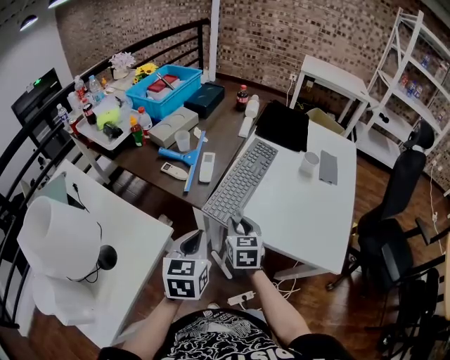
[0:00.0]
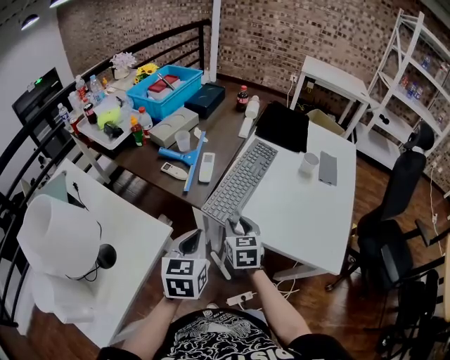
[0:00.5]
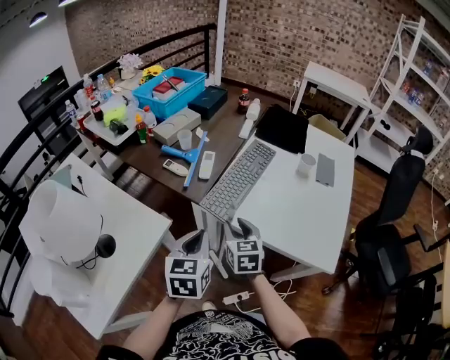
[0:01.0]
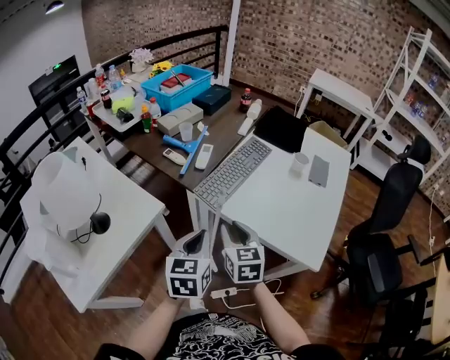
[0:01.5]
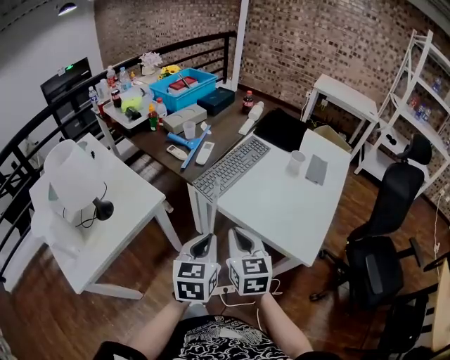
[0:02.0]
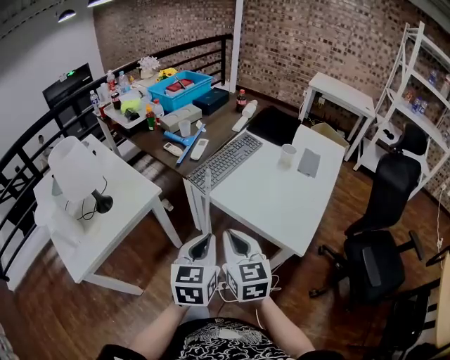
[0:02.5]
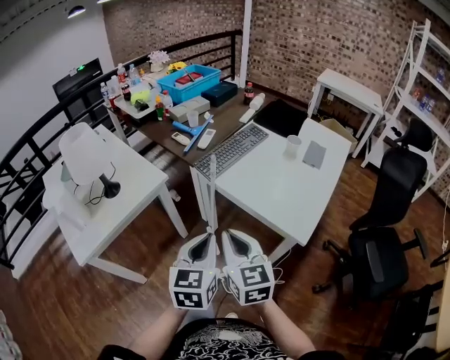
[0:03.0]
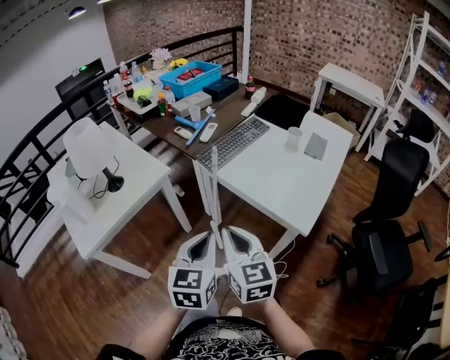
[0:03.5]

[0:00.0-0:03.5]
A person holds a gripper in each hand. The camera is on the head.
0:00.0 to 0:02.0: The right gripper moves backward and upward, about 20 cm, and closes, while the left gripper heads backward and to the right, covering some 20 cm.
0:02.0 to 0:03.5: Both grippers travel together backward, approximately 15 cm.

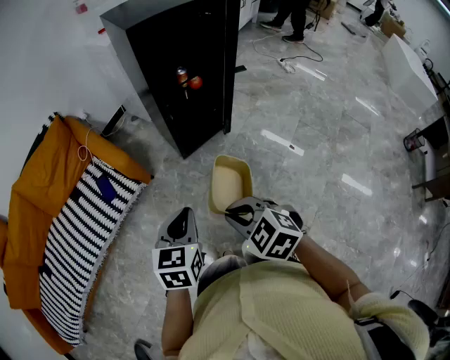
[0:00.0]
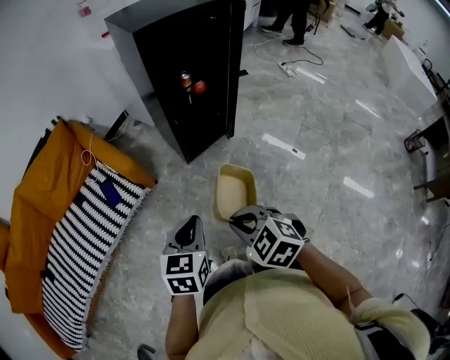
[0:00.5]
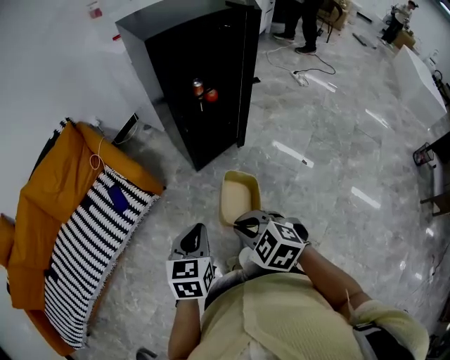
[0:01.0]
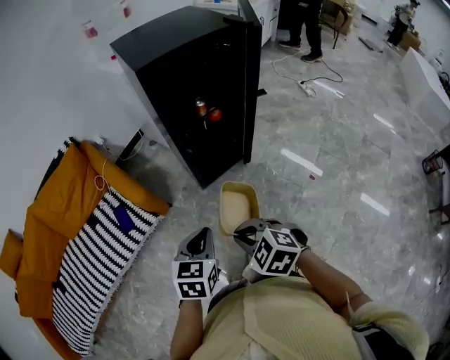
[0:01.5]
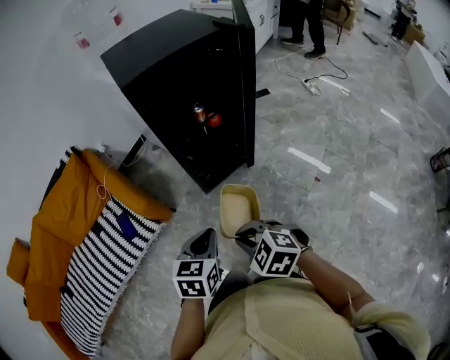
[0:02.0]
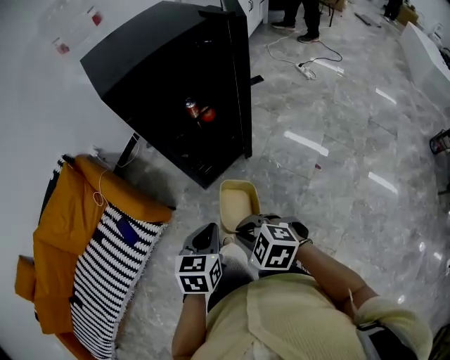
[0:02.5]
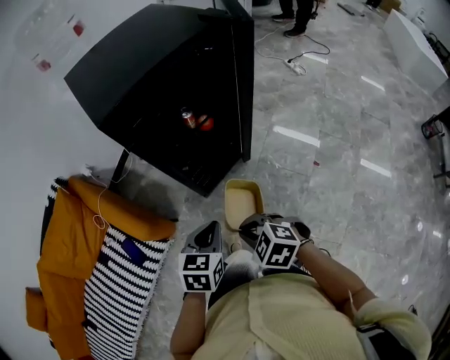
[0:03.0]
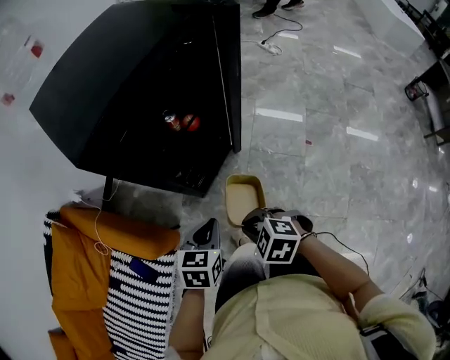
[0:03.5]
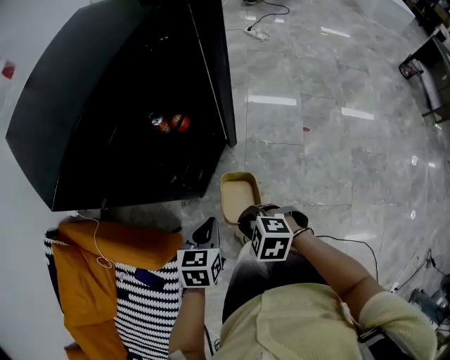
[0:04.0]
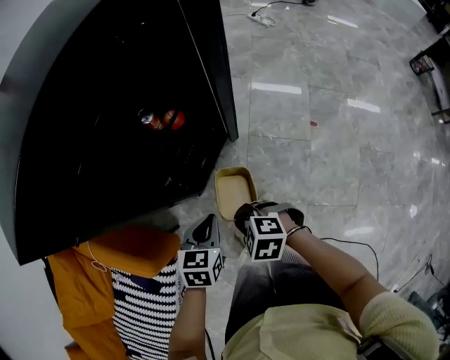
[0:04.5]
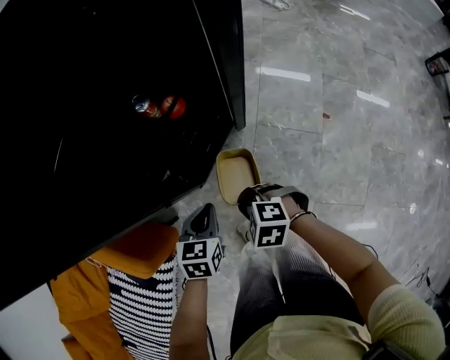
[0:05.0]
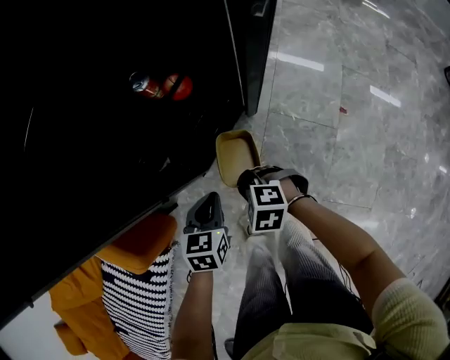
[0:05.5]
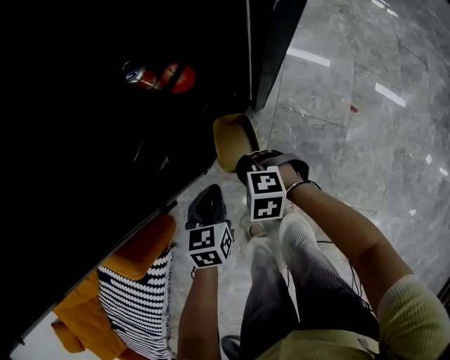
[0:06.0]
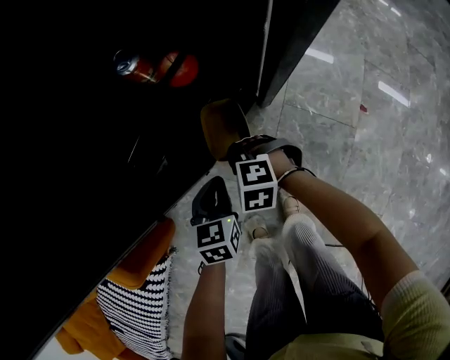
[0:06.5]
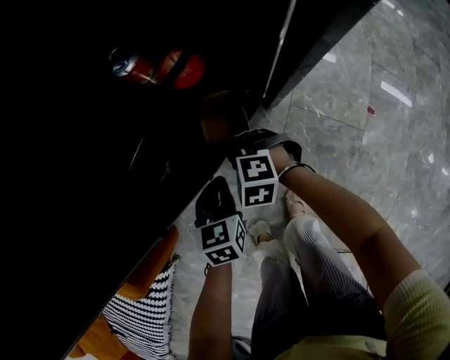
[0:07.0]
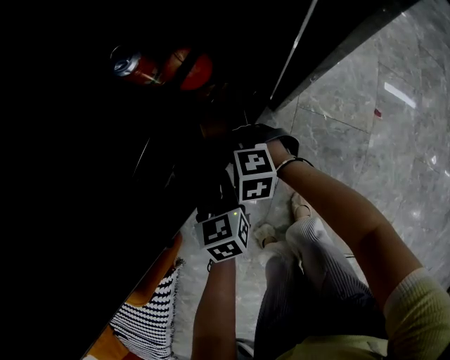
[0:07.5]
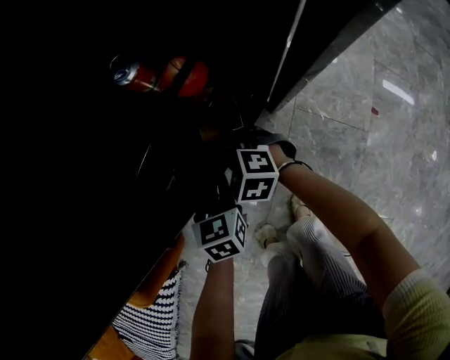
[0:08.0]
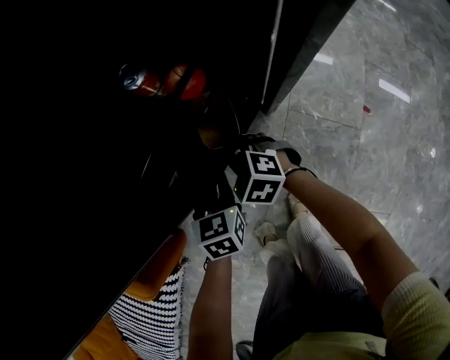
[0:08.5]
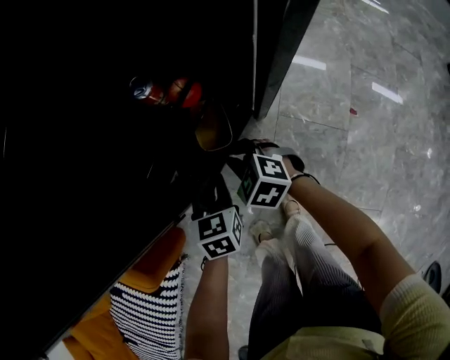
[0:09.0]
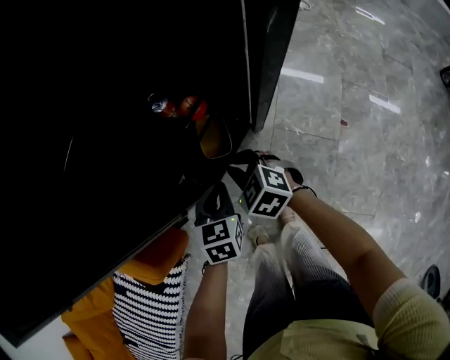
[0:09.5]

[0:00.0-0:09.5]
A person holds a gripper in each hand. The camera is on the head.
0:00.0 to 0:02.0: The grippers both shift forward and to the right by some 15 cm.
0:02.0 to 0:04.0: Both grippers move forward and downward, approximately 20 cm. The right gripper swivels about 20 degrees. Meanwhile the left gripper turns by roughly 30 degrees.
0:04.0 to 0:05.5: The grippers both shift downward and forward by some 20 cm.
0:05.5 to 0:07.5: The right gripper shifts roughly 20 cm forward and downward. The left gripper heads downward and forward, covering roughly 15 cm.
0:07.5 to 0:09.5: Both grippers move upward, some 20 cm. The right gripper turns by roughly 30 degrees.

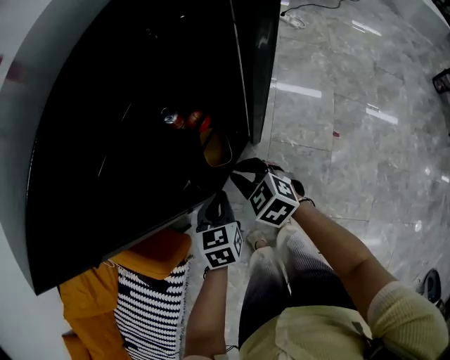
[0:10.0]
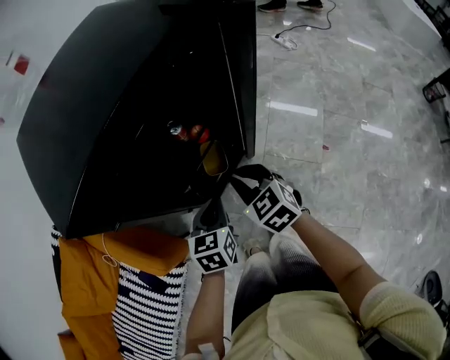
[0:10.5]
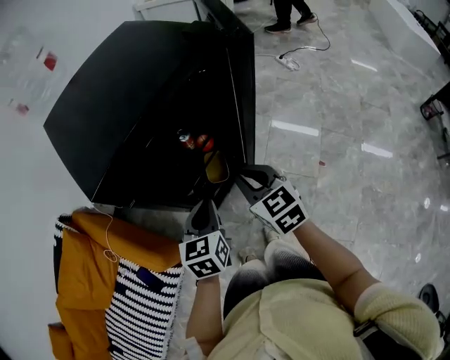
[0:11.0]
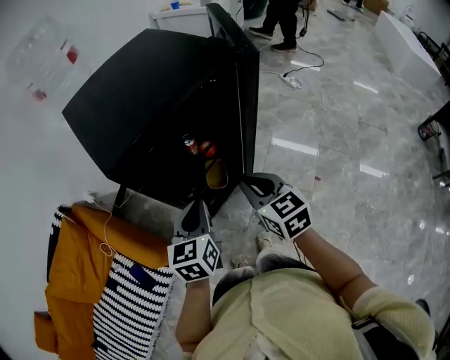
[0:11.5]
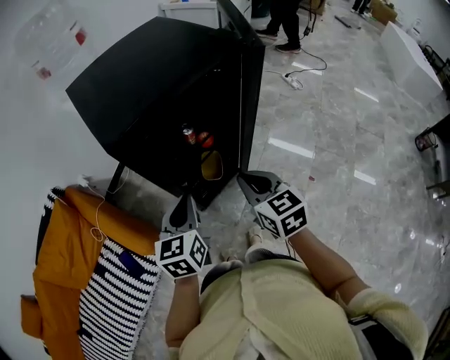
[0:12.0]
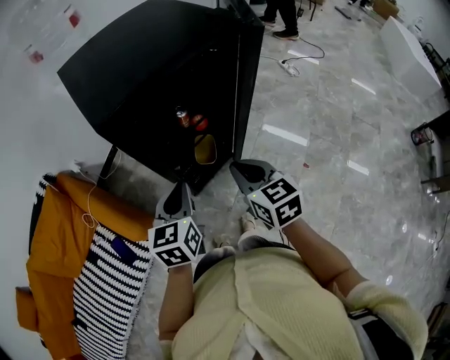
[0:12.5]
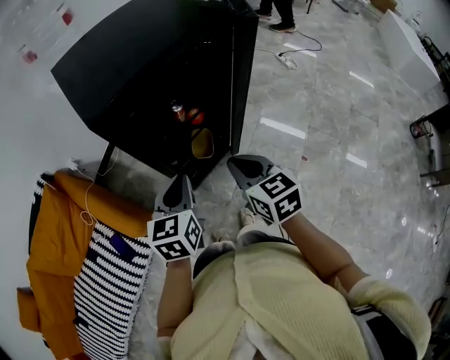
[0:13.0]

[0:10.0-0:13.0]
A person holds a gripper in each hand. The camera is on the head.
0:10.0 to 0:11.5: The two grippers go roughly 20 cm upward. The right gripper rotates approximately 30 degrees. The left gripper rotates some 20 degrees.
0:11.5 to 0:13.0: The grippers stay close to where they were, moving slightly.

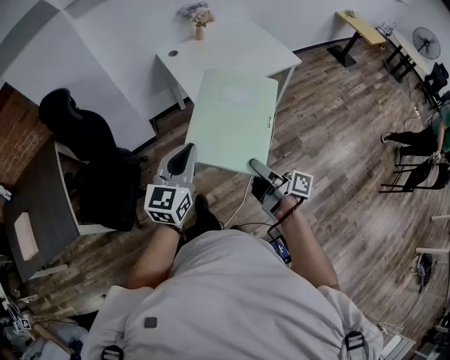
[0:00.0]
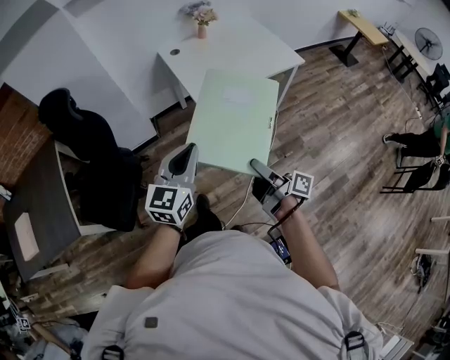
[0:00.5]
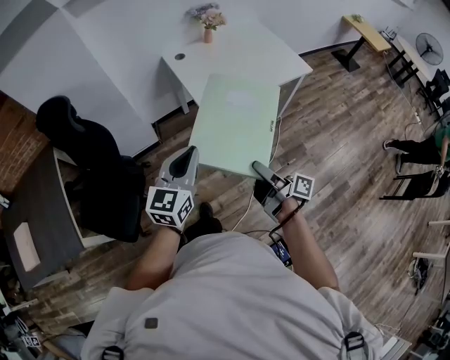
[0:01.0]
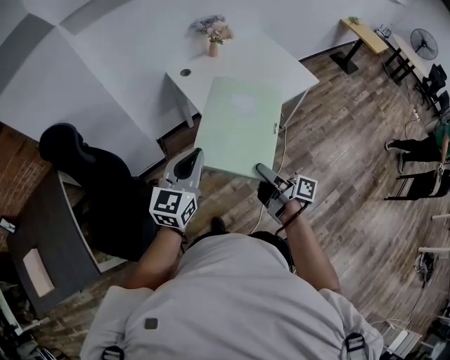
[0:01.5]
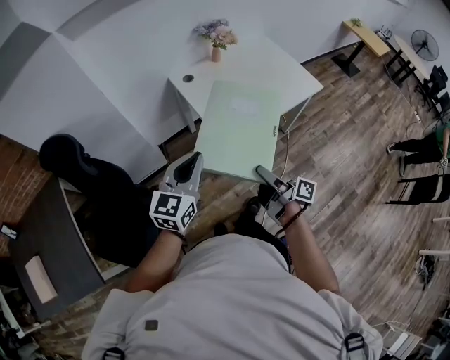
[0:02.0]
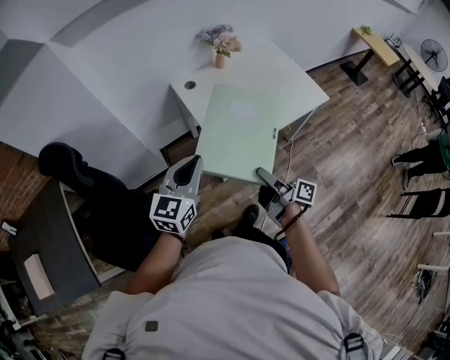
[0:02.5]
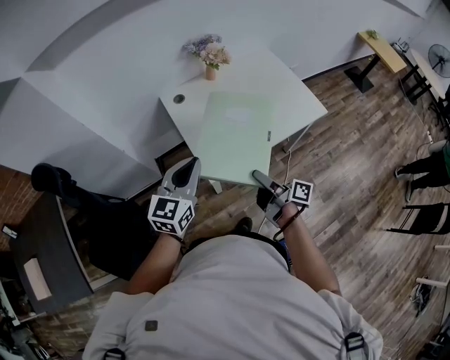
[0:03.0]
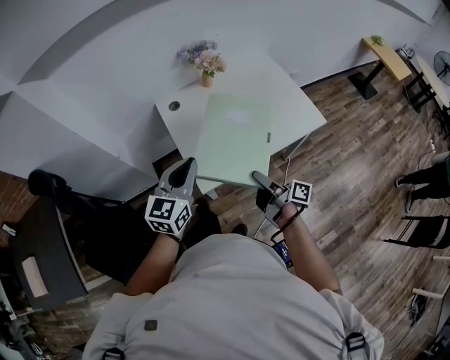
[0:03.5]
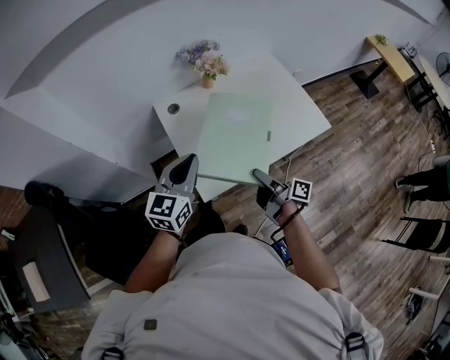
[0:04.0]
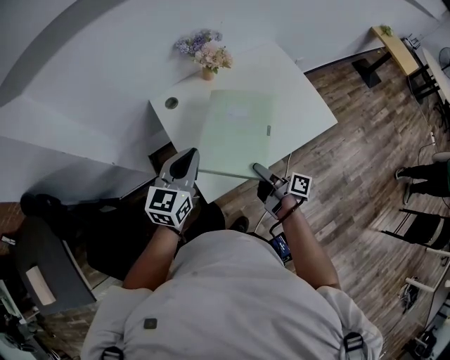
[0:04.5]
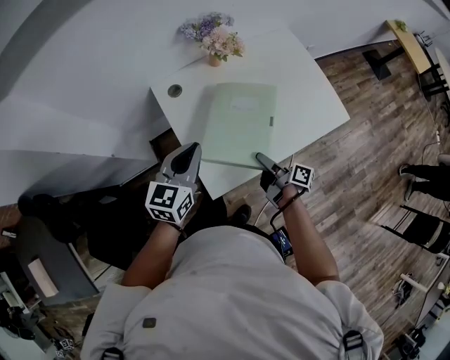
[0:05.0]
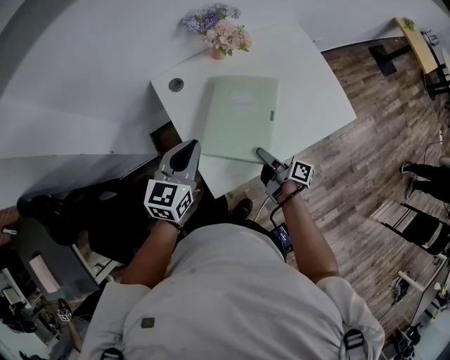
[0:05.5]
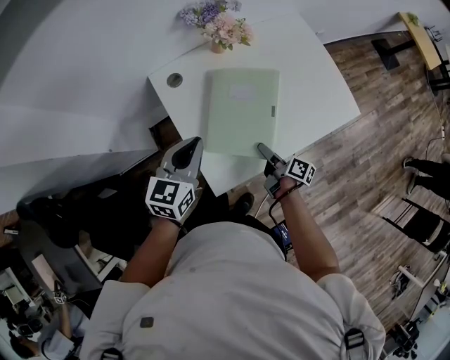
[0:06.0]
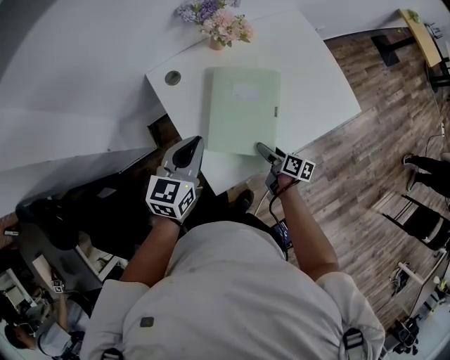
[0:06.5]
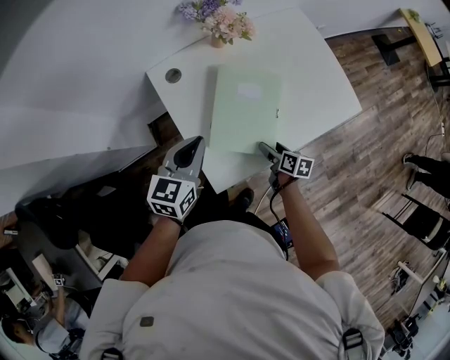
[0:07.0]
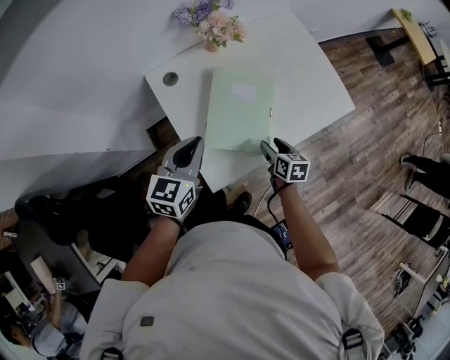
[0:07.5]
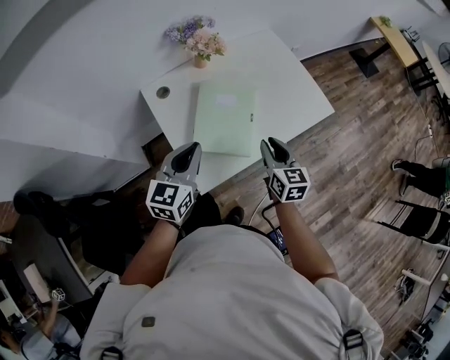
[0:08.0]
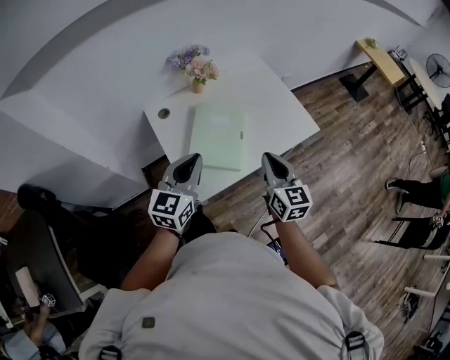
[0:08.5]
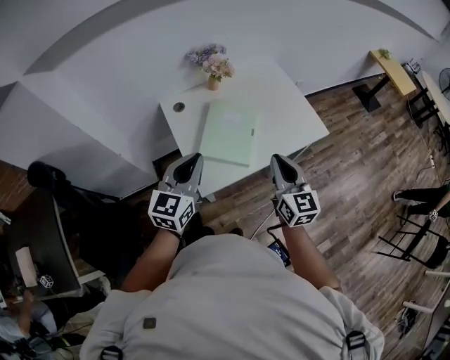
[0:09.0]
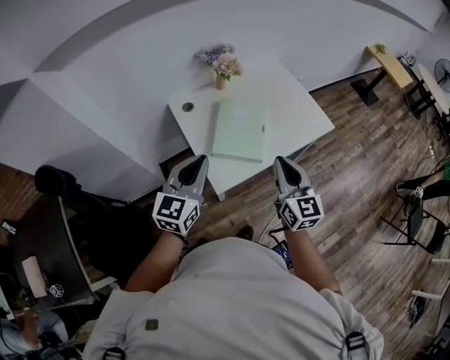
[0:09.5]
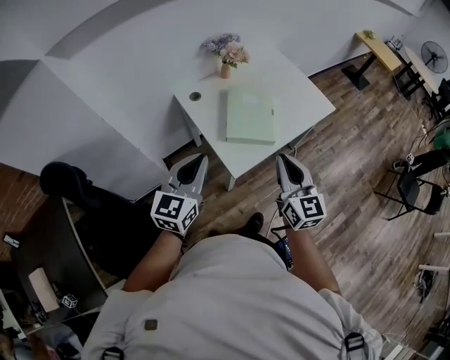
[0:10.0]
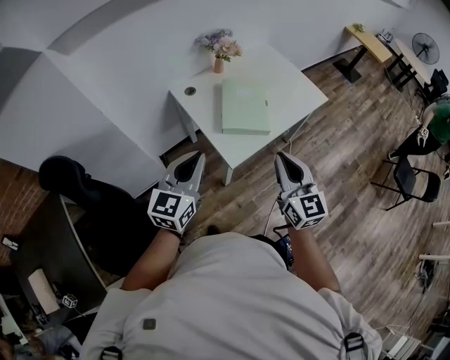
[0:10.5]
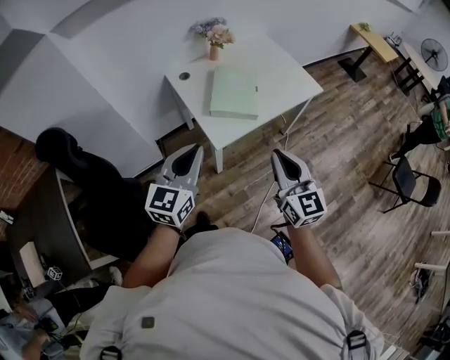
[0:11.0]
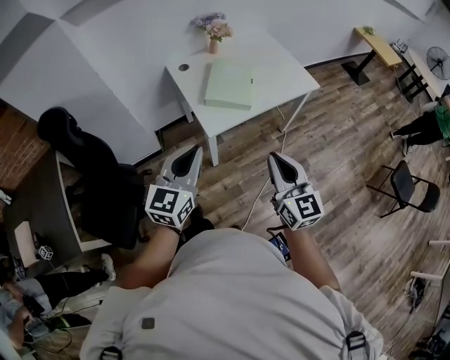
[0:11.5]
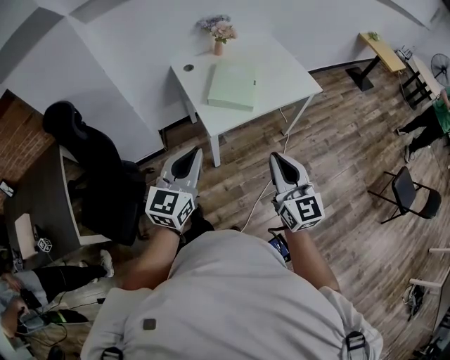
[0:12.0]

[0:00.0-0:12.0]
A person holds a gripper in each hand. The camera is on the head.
0:00.0 to 0:02.0: The right gripper goes about 25 cm forward. Meanwhile the left gripper travels forward and to the left by approximately 25 cm.
0:02.0 to 0:04.0: The grippers both shift forward and to the right by approximately 30 cm.
0:04.0 to 0:06.0: The left gripper travels forward and downward by roughly 15 cm. The right gripper moves downward and forward, roughly 20 cm, and turns by approximately 20 degrees.
0:06.0 to 0:08.0: The left gripper goes roughly 10 cm backward, to the right and upward. The right gripper goes roughly 15 cm upward, twists roughly 60 degrees counterclockwise, seen from behind, and closes its fingers.
0:08.0 to 0:10.0: The left gripper moves backward, to the left and upward, approximately 25 cm. The right gripper moves backward, upward and to the left, roughly 30 cm, and changes its angle by some 20 degrees.
0:10.0 to 0:12.0: Both grippers travel together backward and to the right, roughly 25 cm.
